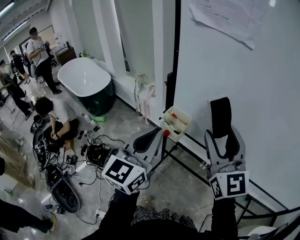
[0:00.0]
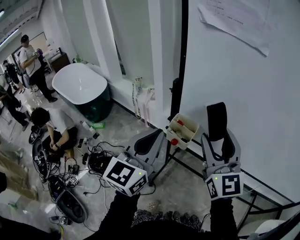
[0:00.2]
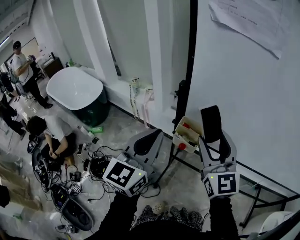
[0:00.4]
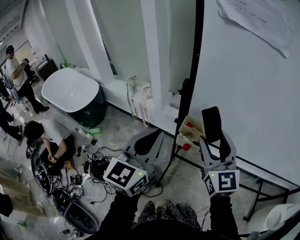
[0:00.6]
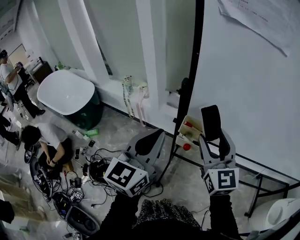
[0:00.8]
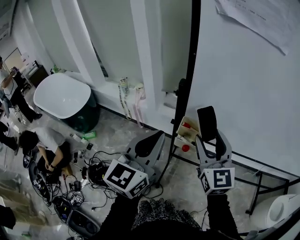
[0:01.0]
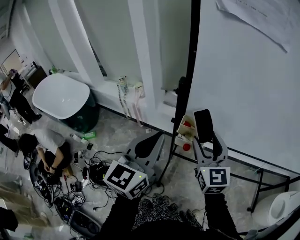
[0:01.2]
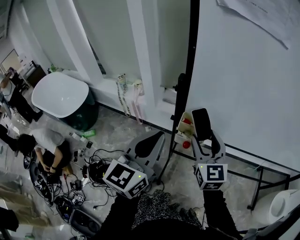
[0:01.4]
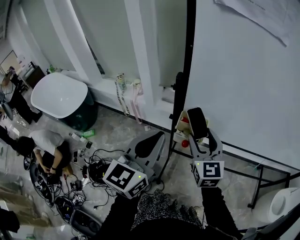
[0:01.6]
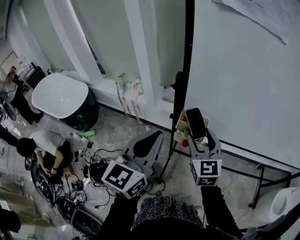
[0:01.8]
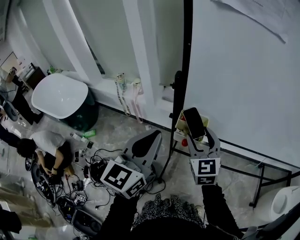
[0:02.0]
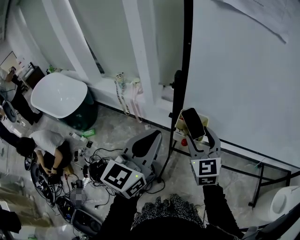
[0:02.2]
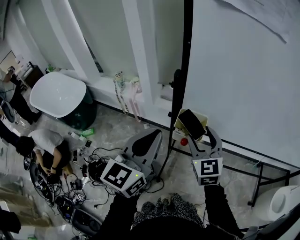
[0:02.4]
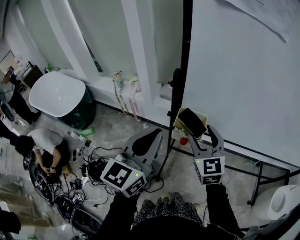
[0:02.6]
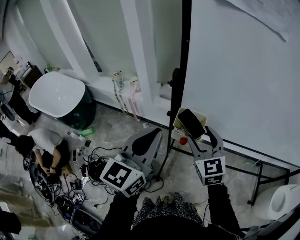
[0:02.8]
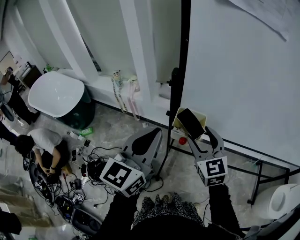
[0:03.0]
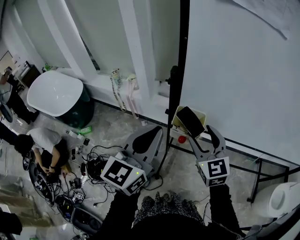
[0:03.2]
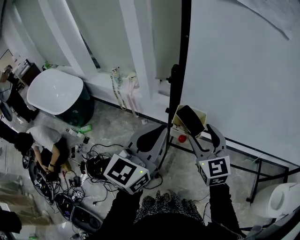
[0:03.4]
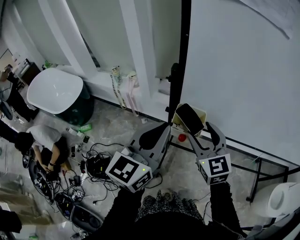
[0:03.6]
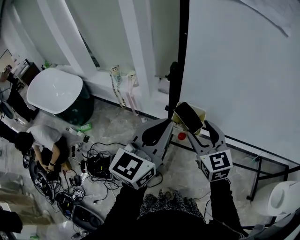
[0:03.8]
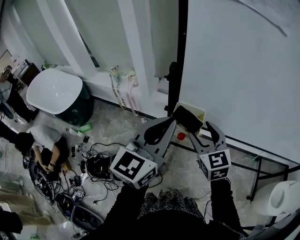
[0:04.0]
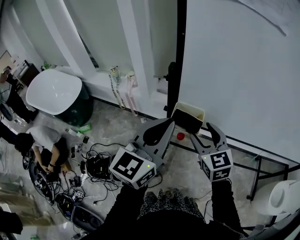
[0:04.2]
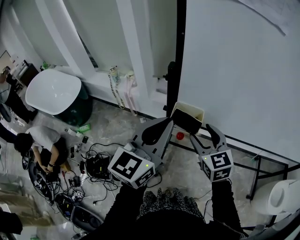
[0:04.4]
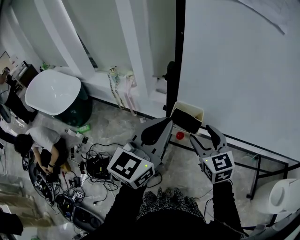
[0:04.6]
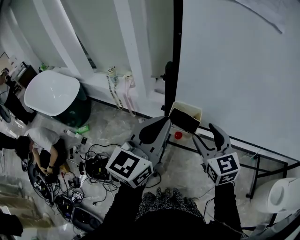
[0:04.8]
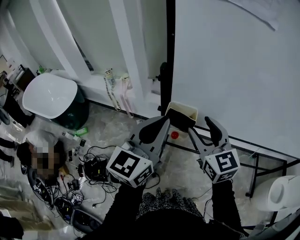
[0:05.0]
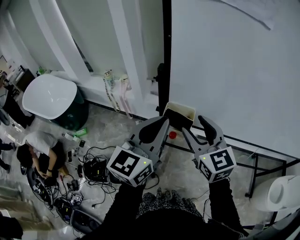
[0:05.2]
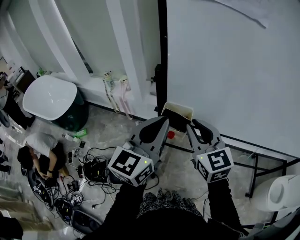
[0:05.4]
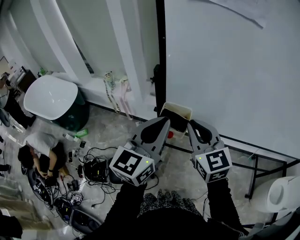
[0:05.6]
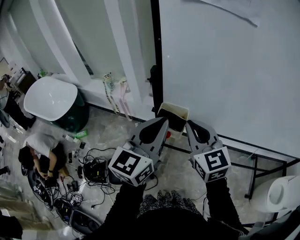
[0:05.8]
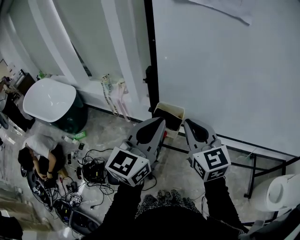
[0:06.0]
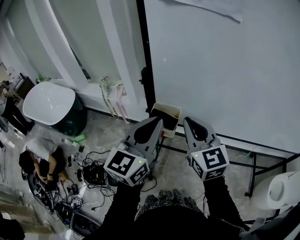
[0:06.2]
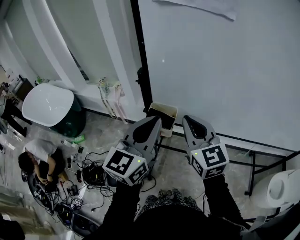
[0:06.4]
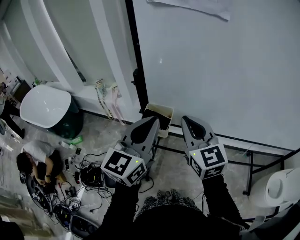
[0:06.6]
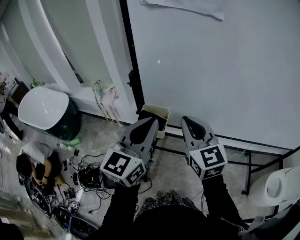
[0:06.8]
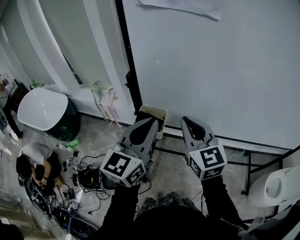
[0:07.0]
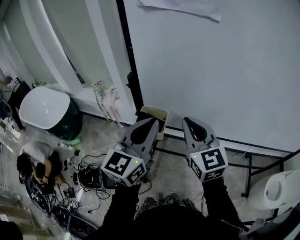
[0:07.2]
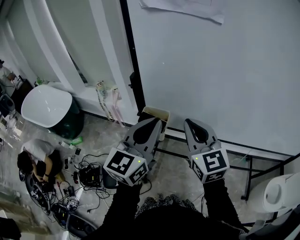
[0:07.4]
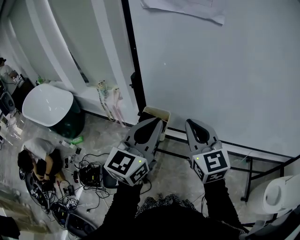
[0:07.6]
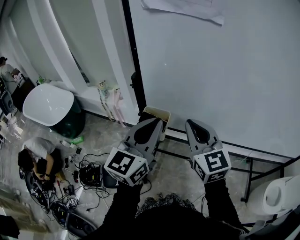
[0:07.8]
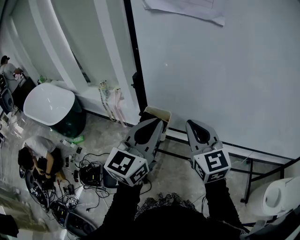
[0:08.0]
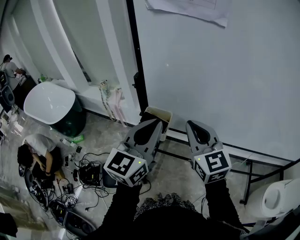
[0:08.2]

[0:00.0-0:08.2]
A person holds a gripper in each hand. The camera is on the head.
0:00.0 to 0:01.6: The left gripper heads to the left and forward, covering roughly 15 cm, while the right gripper travels downward, to the left and forward by about 25 cm, and turns by approximately 30 degrees.
0:01.6 to 0:03.2: The grippers stay close to where they were, moving slightly.
0:03.2 to 0:05.0: The right gripper shifts roughly 5 cm upward.
0:05.0 to 0:06.6: The left gripper heads to the right, covering roughly 5 cm. The right gripper ends up about 5 cm from where it was, and closes.
0:06.6 to 0:08.2: The grippers make only small movements.
